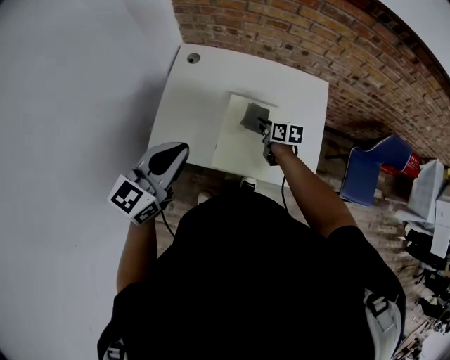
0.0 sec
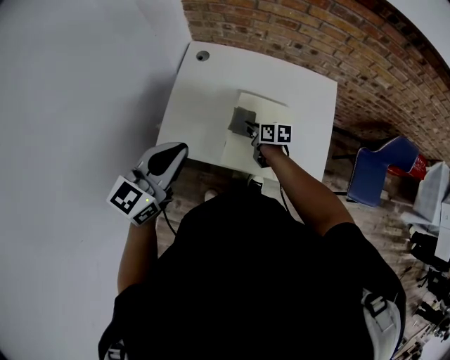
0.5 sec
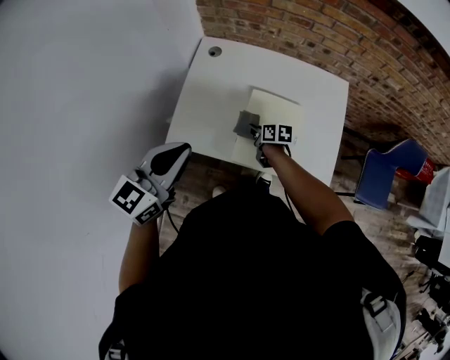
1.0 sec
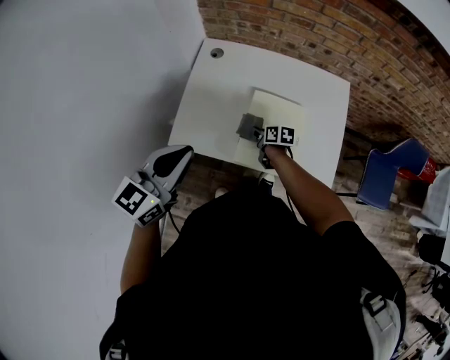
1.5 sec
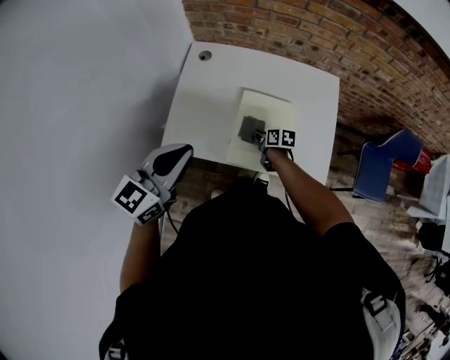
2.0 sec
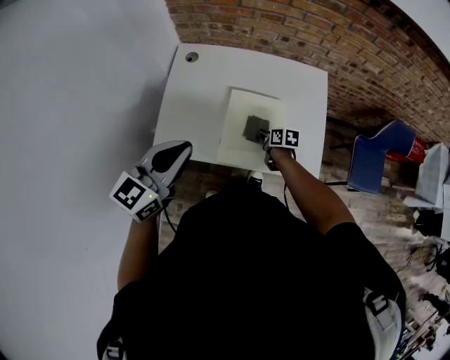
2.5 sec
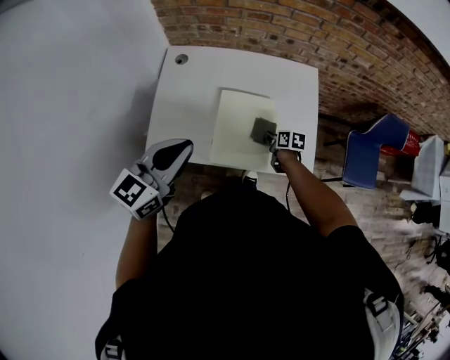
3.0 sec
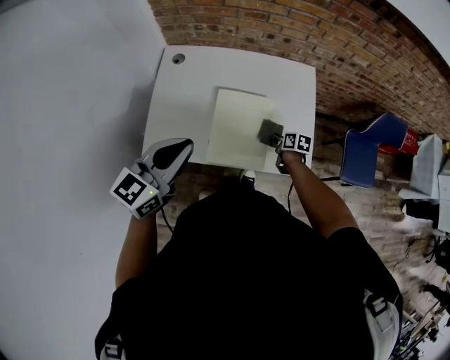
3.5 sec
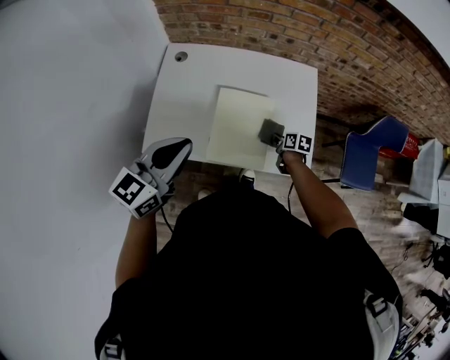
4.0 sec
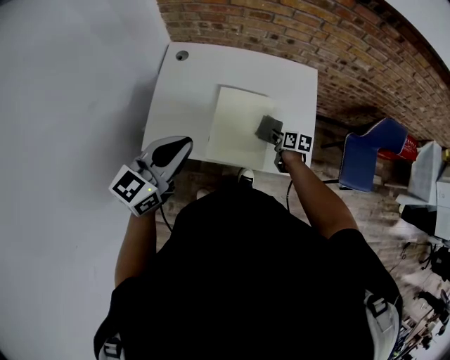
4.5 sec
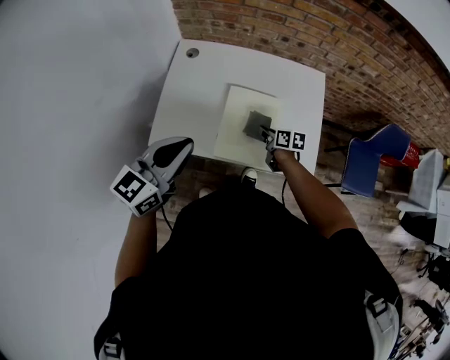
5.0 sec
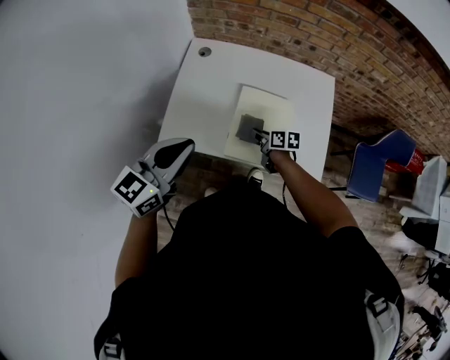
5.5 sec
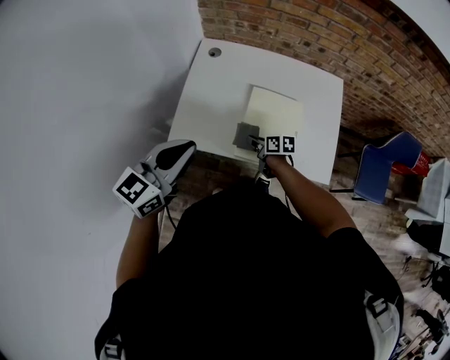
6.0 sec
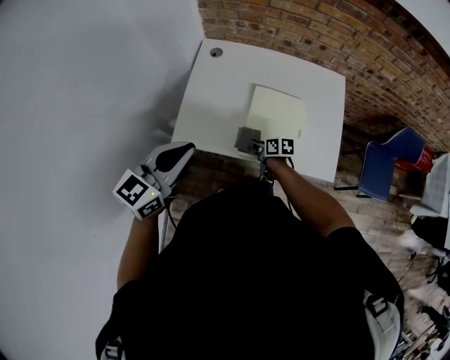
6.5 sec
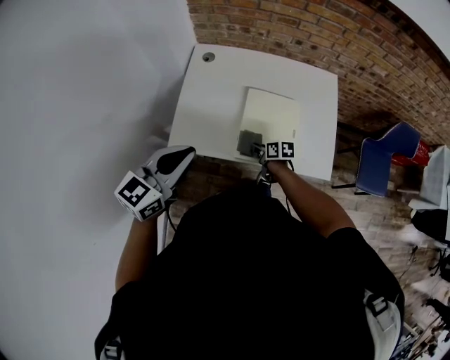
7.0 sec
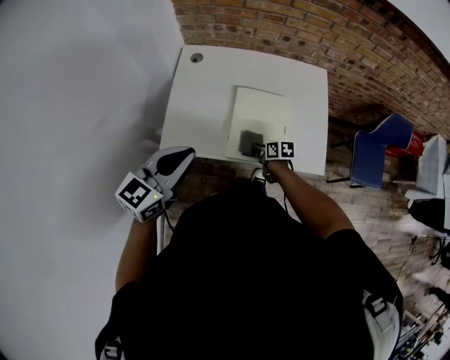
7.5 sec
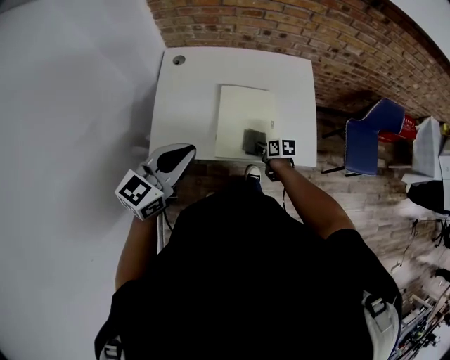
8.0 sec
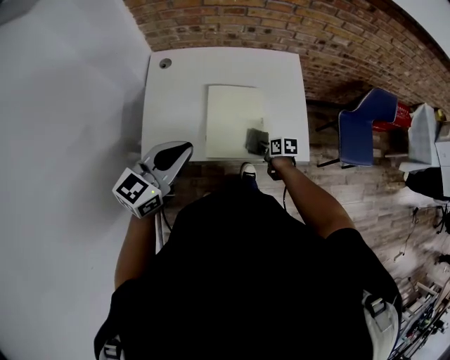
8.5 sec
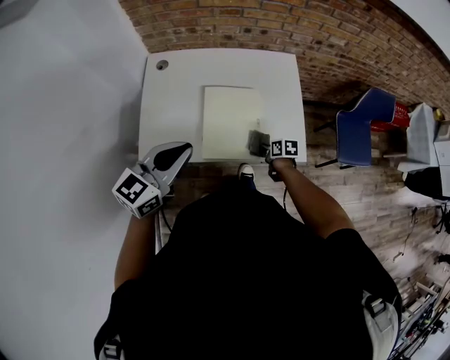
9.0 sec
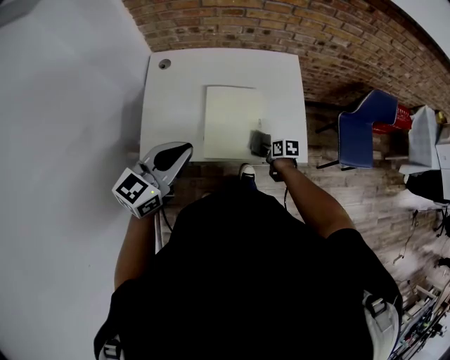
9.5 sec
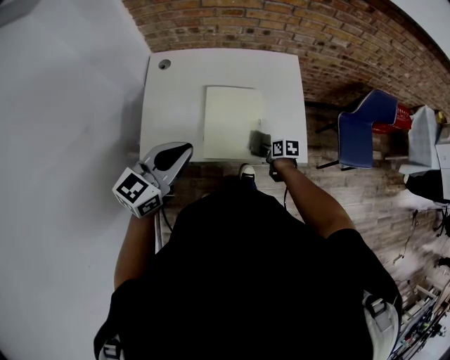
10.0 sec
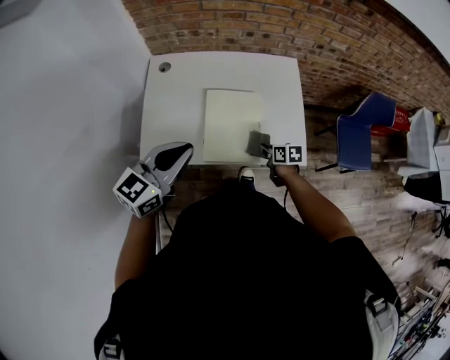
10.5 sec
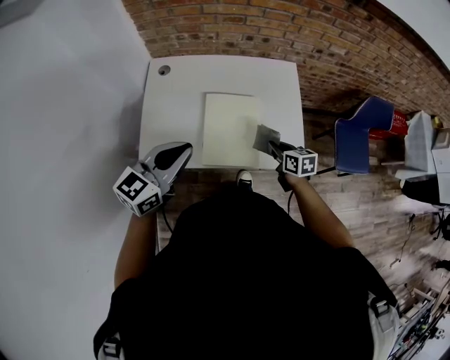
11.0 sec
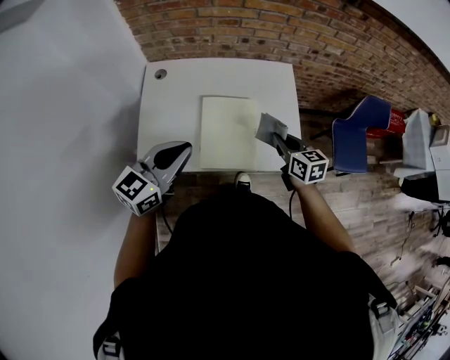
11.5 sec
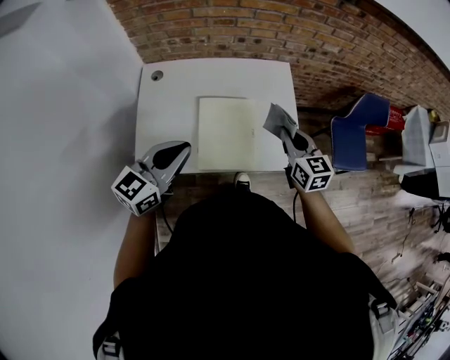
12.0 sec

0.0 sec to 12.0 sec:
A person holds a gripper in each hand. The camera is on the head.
0.0 sec to 2.0 sec: The right gripper is displaced downward, to the left and backward by about 10 cm.
2.0 sec to 4.0 sec: The left gripper shifts about 5 cm to the right. Meanwhile the right gripper heads to the right, covering approximately 20 cm.
4.0 sec to 6.0 sec: The right gripper travels to the left by roughly 25 cm, and swivels roughly 20 degrees. Meanwhile the left gripper is displaced to the left by approximately 10 cm.
6.0 sec to 8.0 sec: The right gripper shifts some 15 cm to the right. The left gripper travels to the right by about 5 cm.
8.0 sec to 10.0 sec: The right gripper travels to the right by some 10 cm.
10.0 sec to 12.0 sec: The right gripper goes some 30 cm upward, and angles its fingers upward, by roughly 30 degrees.

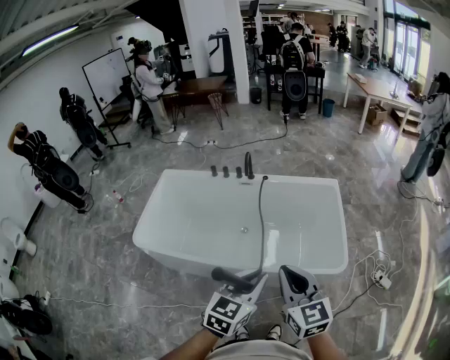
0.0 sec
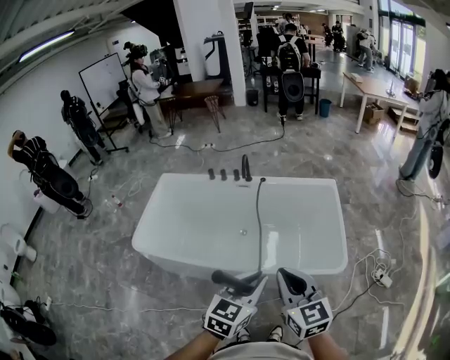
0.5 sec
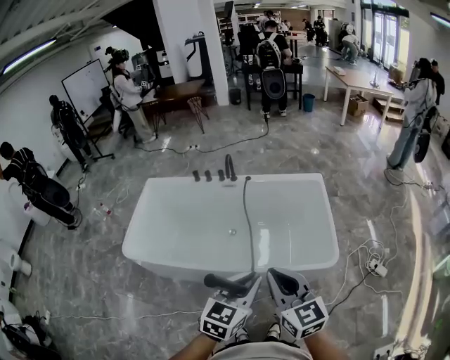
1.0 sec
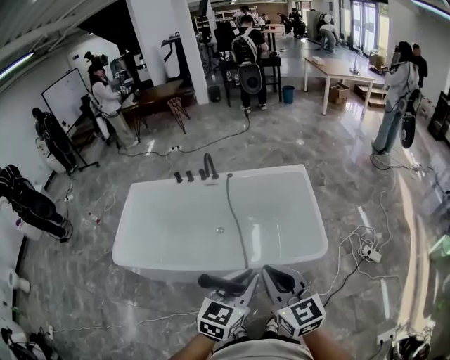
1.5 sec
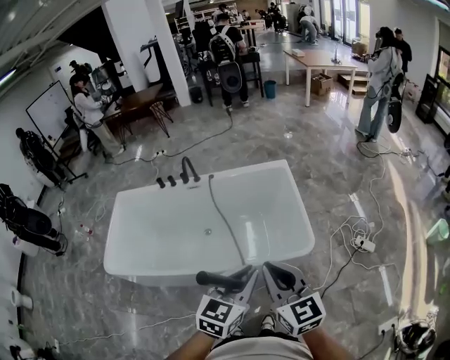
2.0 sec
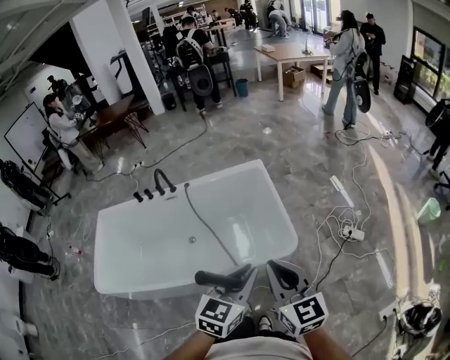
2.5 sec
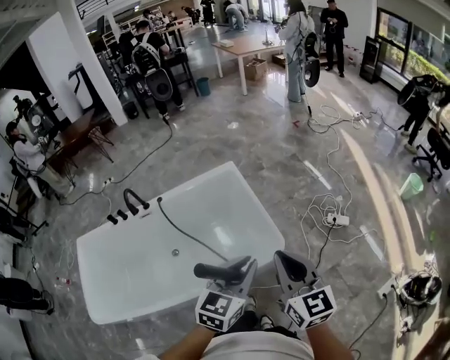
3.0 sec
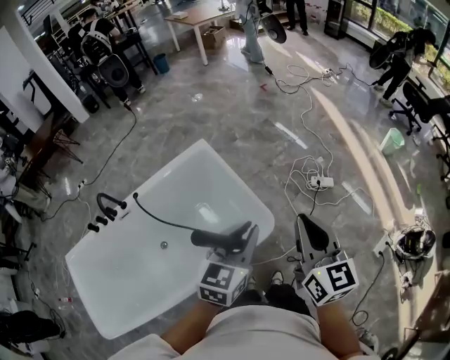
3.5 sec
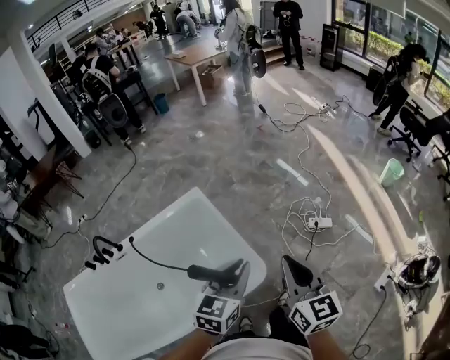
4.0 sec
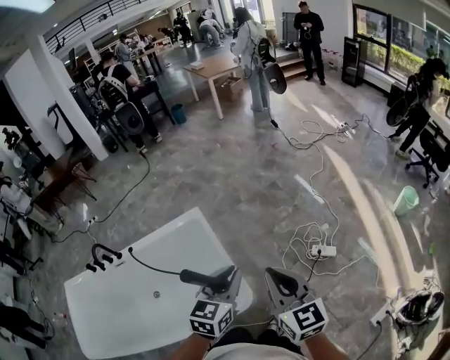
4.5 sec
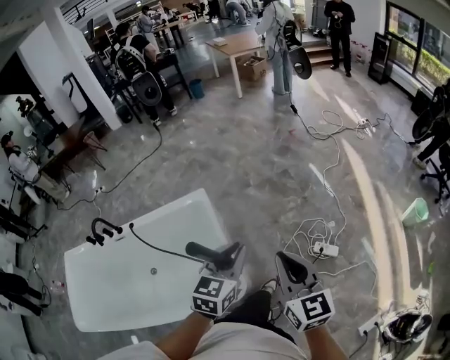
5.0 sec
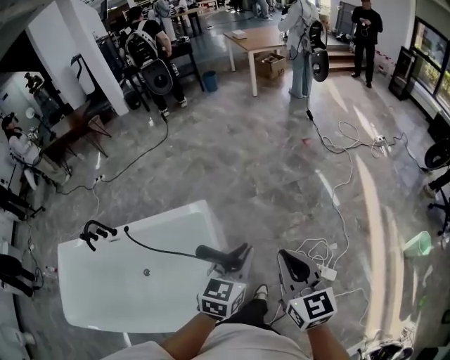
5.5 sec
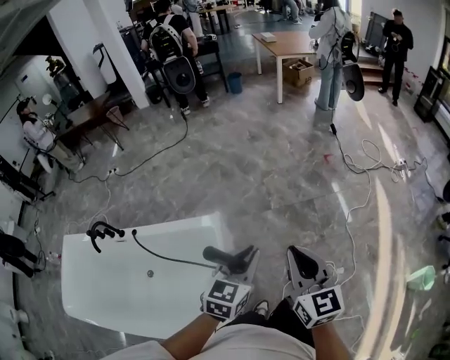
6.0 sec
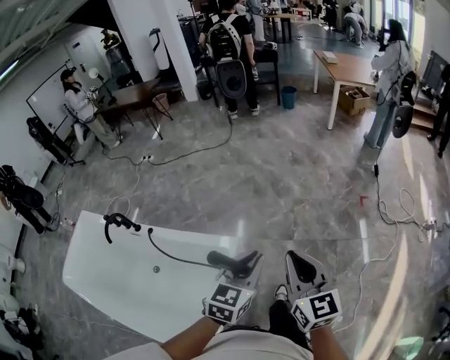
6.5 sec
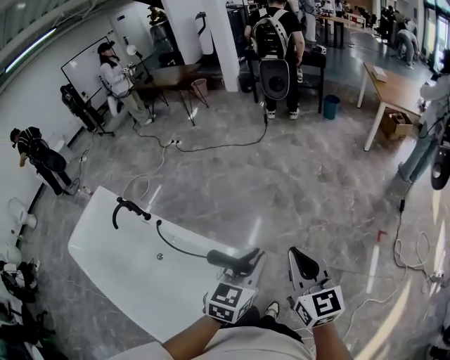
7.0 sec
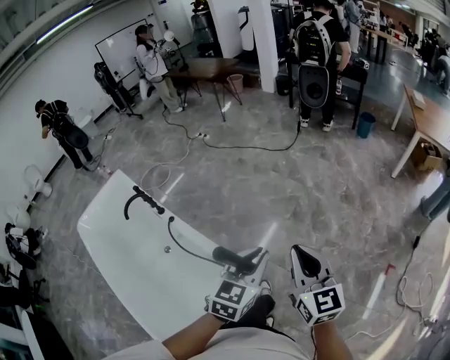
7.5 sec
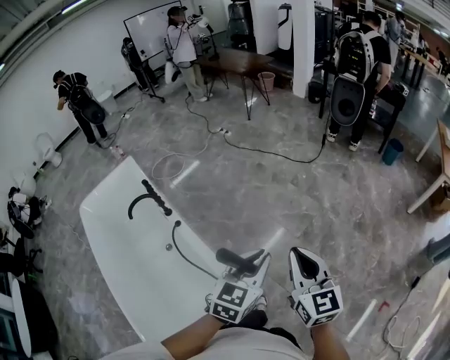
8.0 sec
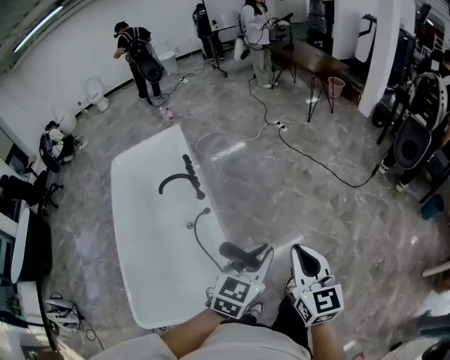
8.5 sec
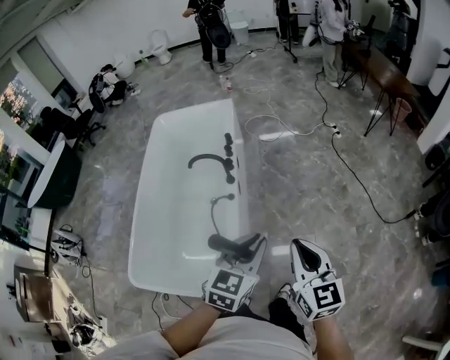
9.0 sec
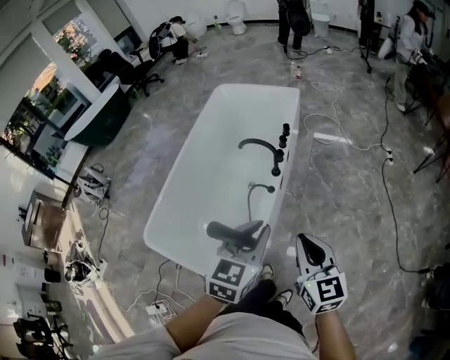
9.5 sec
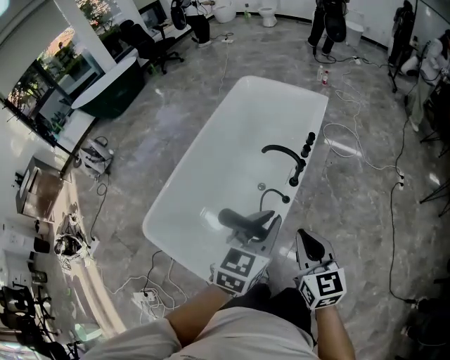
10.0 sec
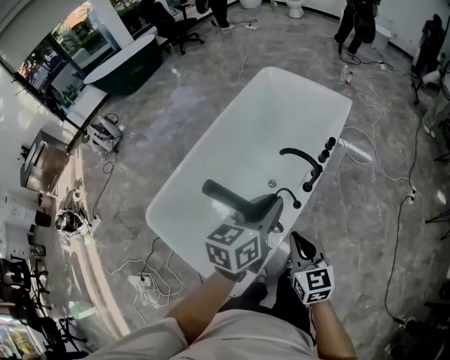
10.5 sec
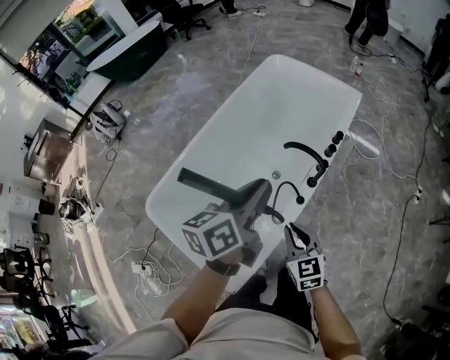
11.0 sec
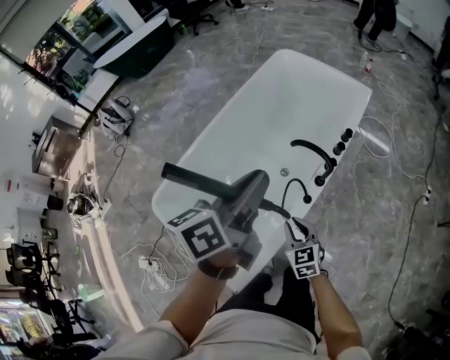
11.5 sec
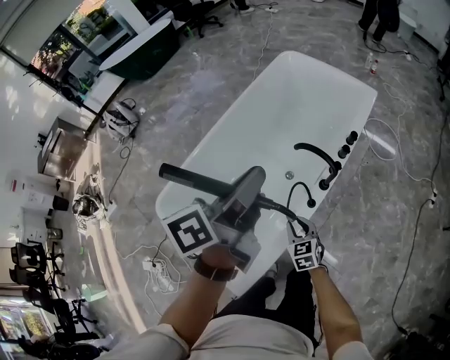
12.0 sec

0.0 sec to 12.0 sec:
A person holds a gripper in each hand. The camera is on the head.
0.0 sec to 2.0 sec: The grippers both shift to the right by about 15 cm.
2.0 sec to 4.0 sec: The left gripper shifts by roughly 30 cm, and swivels about 30 degrees. The right gripper shifts by about 35 cm, and changes its angle by approximately 40 degrees.
4.0 sec to 6.0 sec: The right gripper moves approximately 40 cm, and turns by about 30 degrees; the left gripper moves about 40 cm, and changes its angle by about 30 degrees.
6.0 sec to 8.0 sec: The two grippers travel together, roughly 50 cm. The left gripper changes its angle by roughly 50 degrees; the right gripper turns by approximately 50 degrees.
8.0 sec to 10.0 sec: The right gripper changes place by about 40 cm, and rotates about 70 degrees. Meanwhile the left gripper ends up roughly 40 cm from where it was, and swivels about 70 degrees.
10.0 sec to 12.0 sec: The right gripper shifts about 30 cm downward and forward, and changes its angle by some 30 degrees, while the left gripper travels forward and to the left by approximately 15 cm, and rotates around the line of its fingers by approximately 50 degrees, counterclockwise from behind.

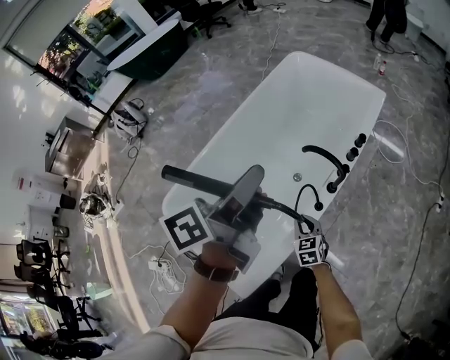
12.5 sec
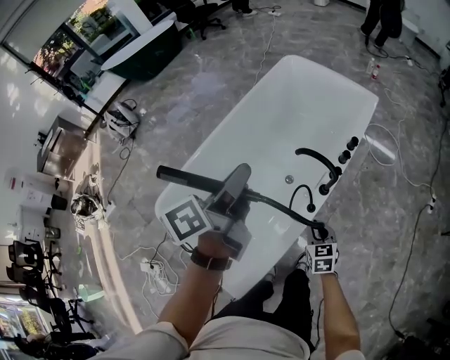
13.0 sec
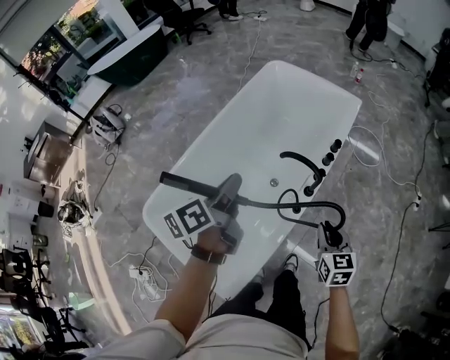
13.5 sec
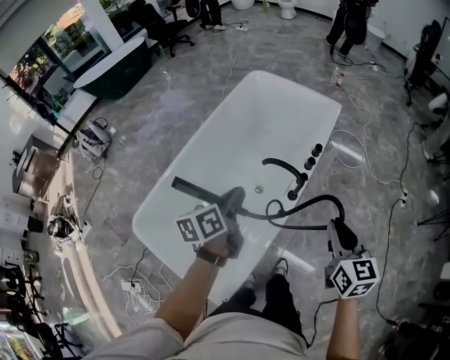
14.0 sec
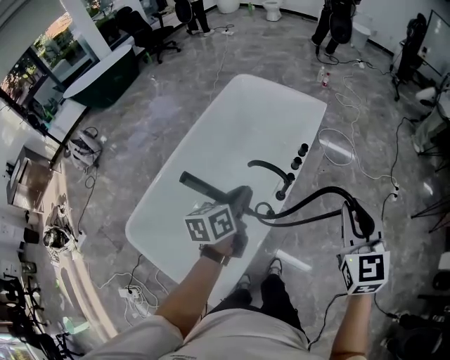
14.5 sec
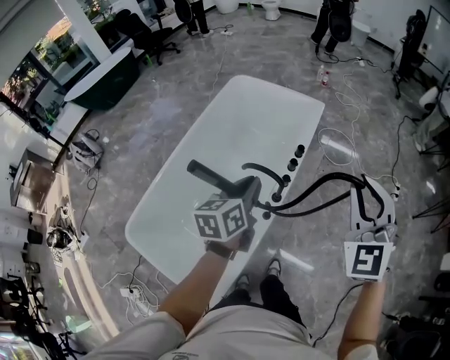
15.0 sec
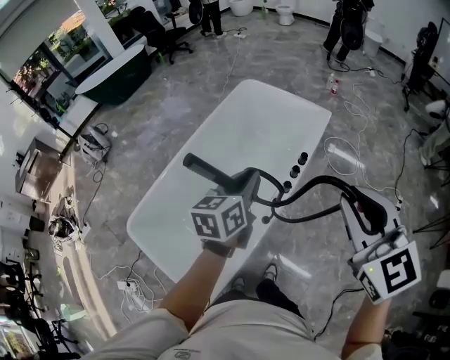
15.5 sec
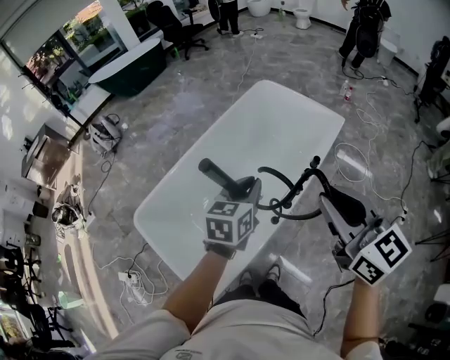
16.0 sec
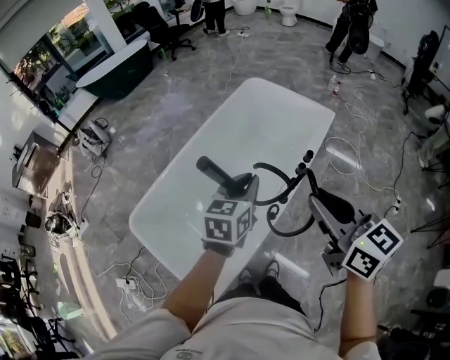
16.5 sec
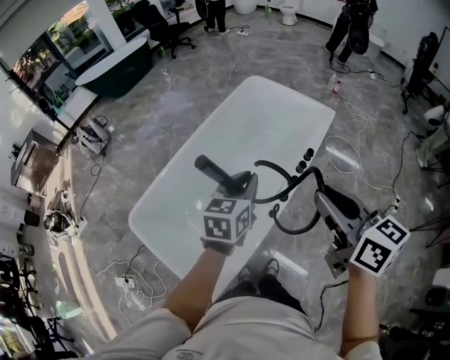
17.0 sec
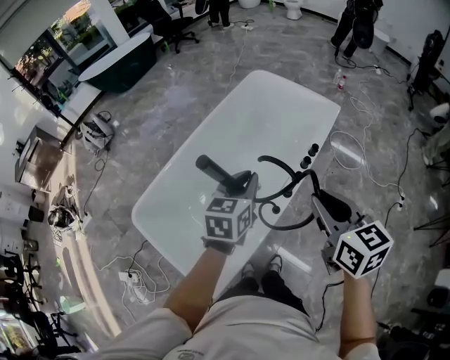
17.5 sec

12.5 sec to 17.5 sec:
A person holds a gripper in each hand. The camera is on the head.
12.5 sec to 15.0 sec: The left gripper travels to the right and downward by some 15 cm, and swivels about 40 degrees. Meanwhile the right gripper goes approximately 50 cm upward and to the right, and swivels about 50 degrees.
15.0 sec to 17.5 sec: The left gripper ends up approximately 5 cm from where it was, while the right gripper moves roughly 15 cm, and twists roughly 50 degrees clockwise, seen from behind.
